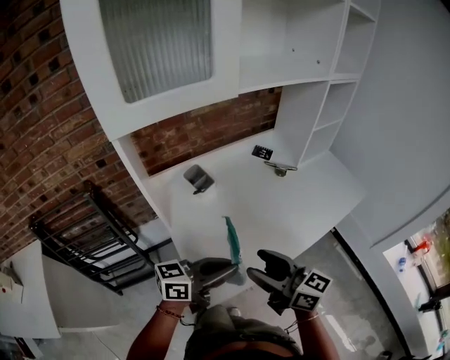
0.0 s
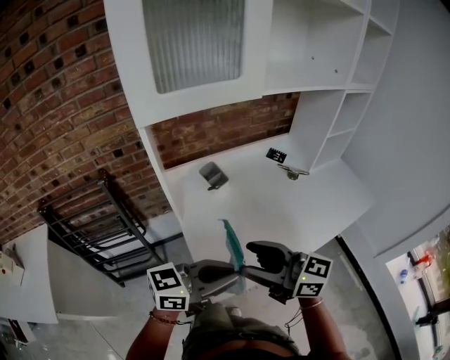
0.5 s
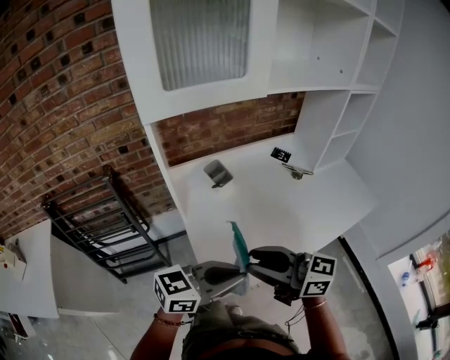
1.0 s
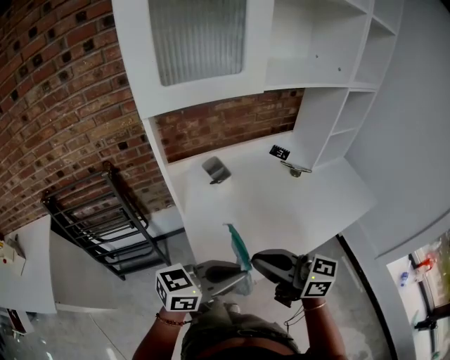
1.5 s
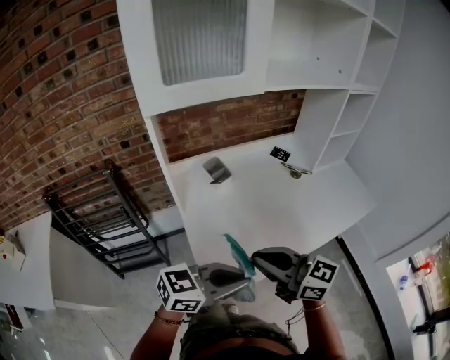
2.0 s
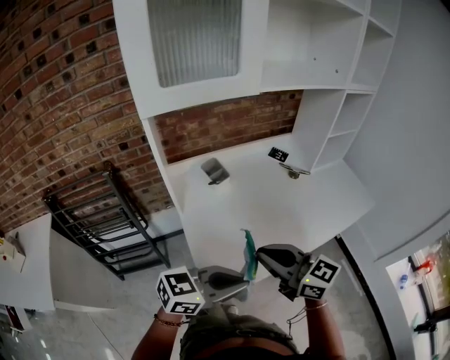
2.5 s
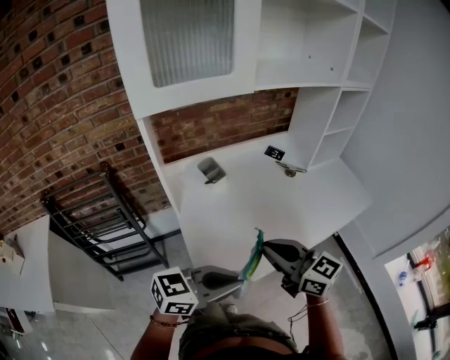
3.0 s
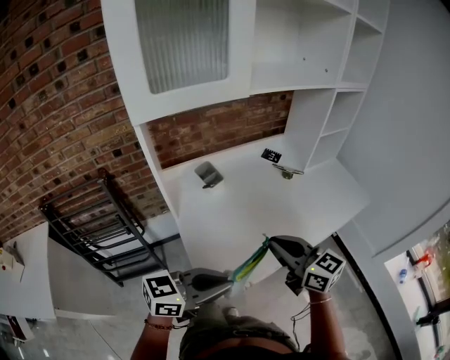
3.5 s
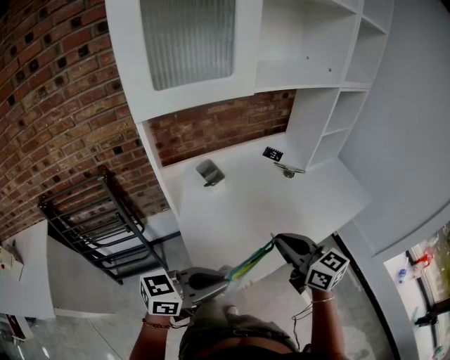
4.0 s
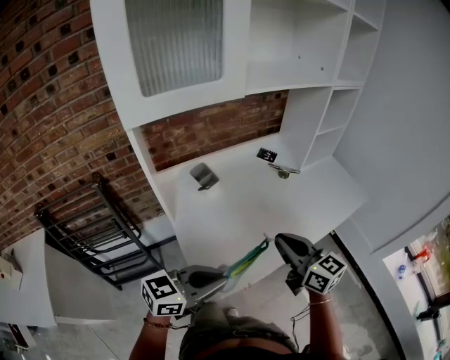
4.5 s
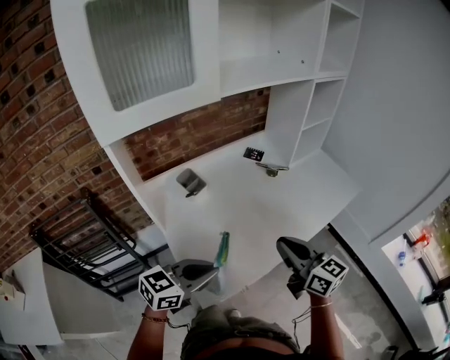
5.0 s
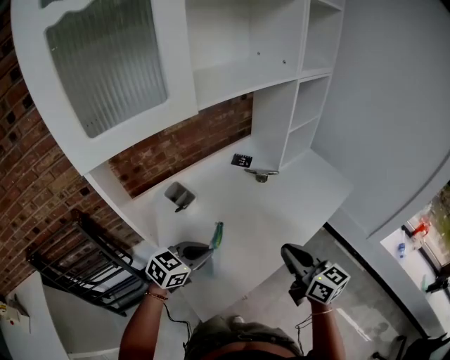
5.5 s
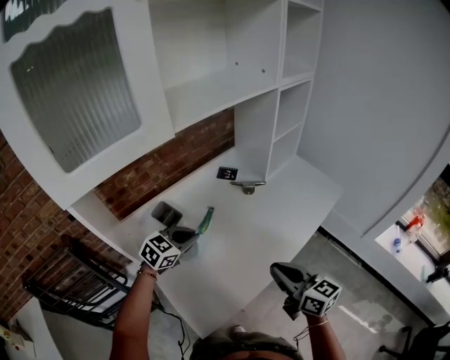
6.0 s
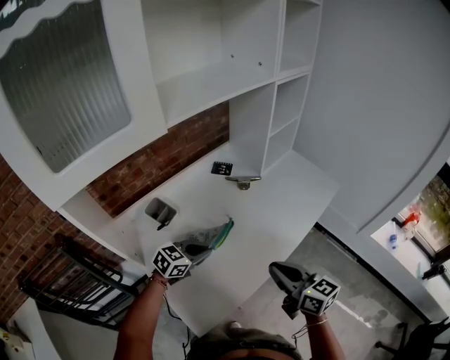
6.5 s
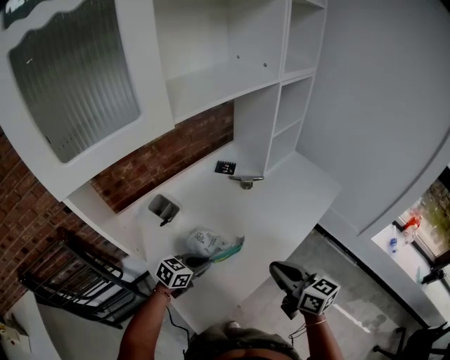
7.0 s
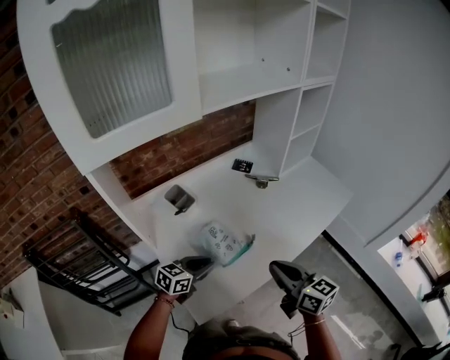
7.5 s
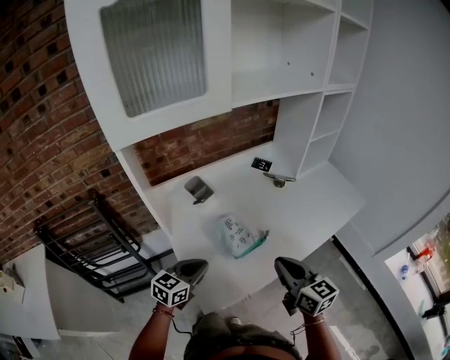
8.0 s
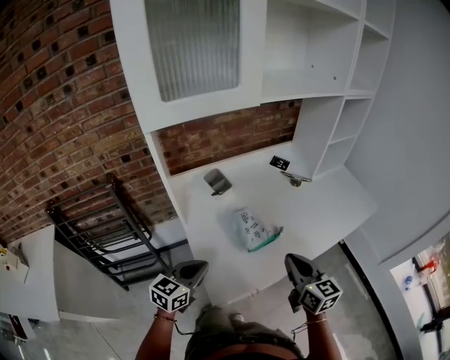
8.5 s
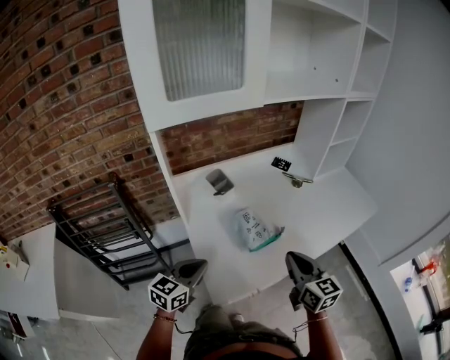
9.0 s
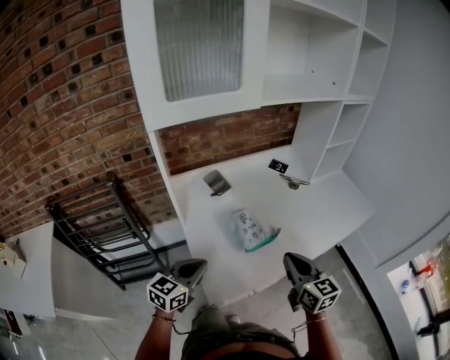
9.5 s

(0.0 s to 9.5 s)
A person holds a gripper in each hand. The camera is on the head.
0.0 s - 2.0 s: The left gripper changes place by about 10 cm. The right gripper changes place by approximately 5 cm, turns by roughly 20 degrees, and closes its fingers.
2.0 s - 4.0 s: The right gripper ends up roughly 10 cm from where it was, and turns by roughly 20 degrees.
4.0 s - 5.5 s: The right gripper goes approximately 10 cm to the right, and turns by roughly 20 degrees. The left gripper moves forward and downward, some 20 cm, and swivels about 30 degrees.
5.5 s - 7.5 s: The left gripper shifts approximately 10 cm downward, and moves roughly 10 cm forward and comes back.
7.5 s - 9.5 s: The left gripper goes some 15 cm backward, to the left and upward, and turns by some 20 degrees.

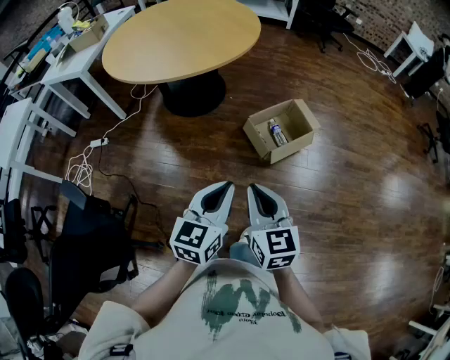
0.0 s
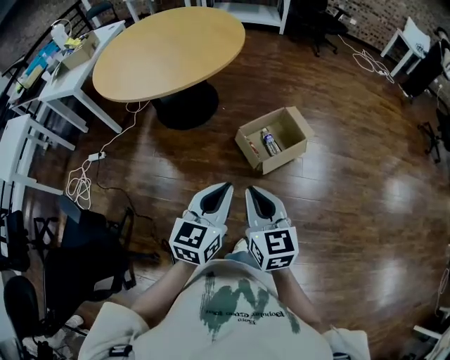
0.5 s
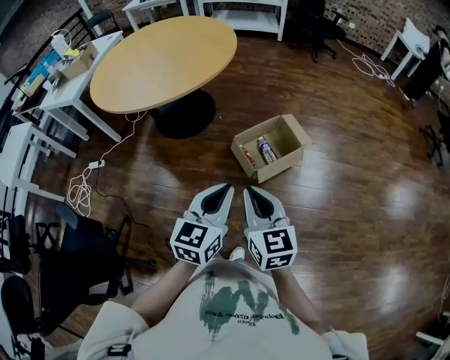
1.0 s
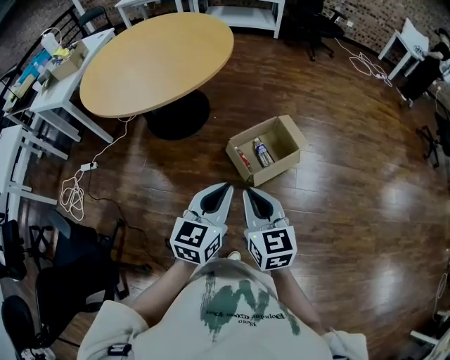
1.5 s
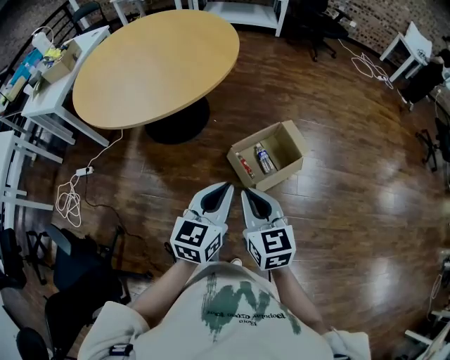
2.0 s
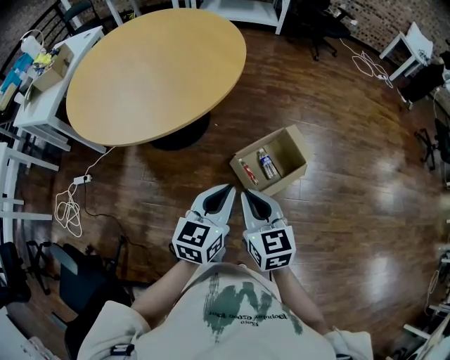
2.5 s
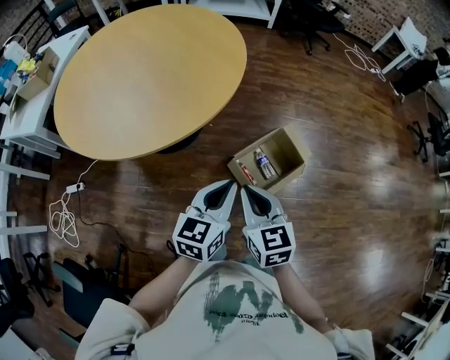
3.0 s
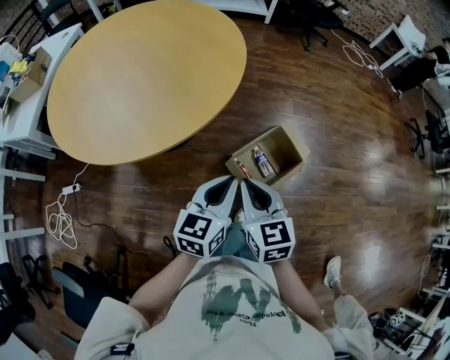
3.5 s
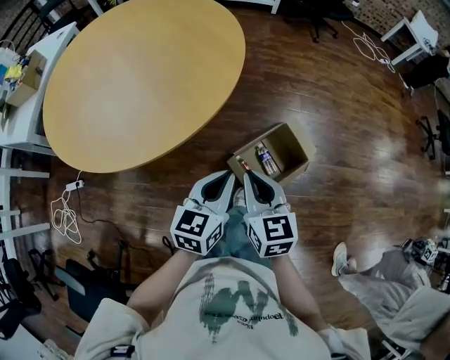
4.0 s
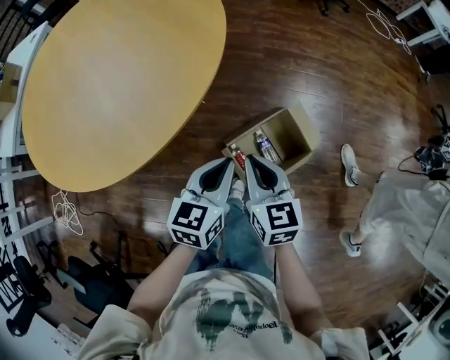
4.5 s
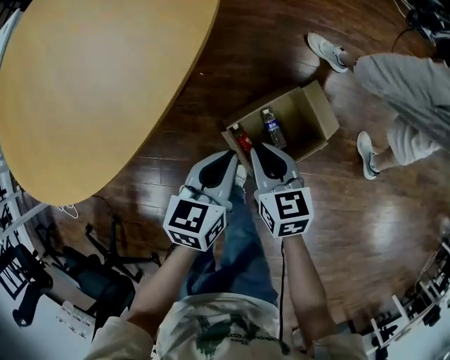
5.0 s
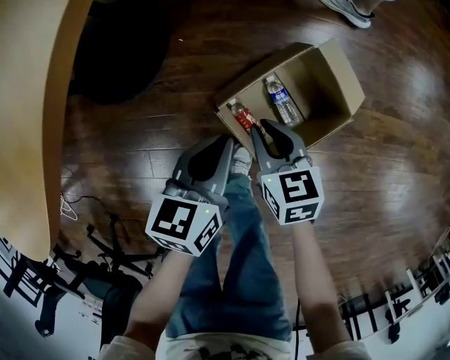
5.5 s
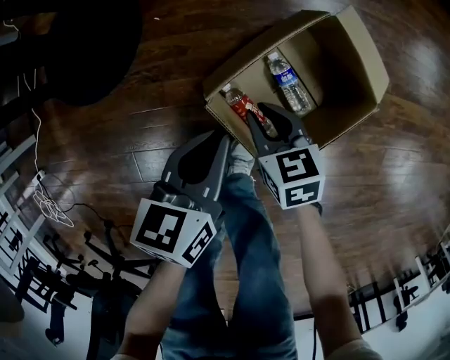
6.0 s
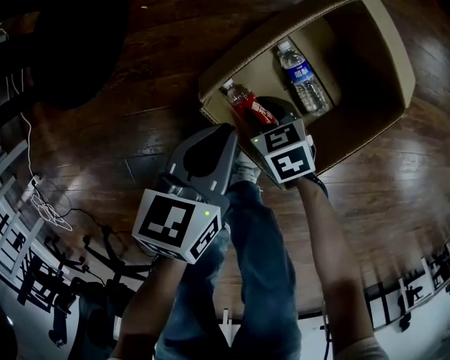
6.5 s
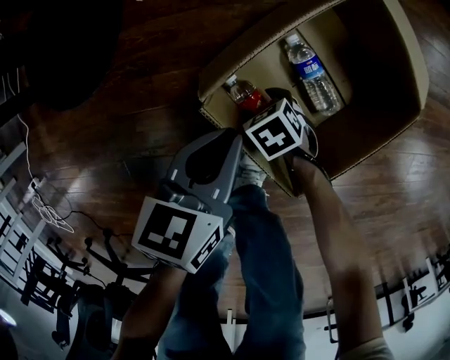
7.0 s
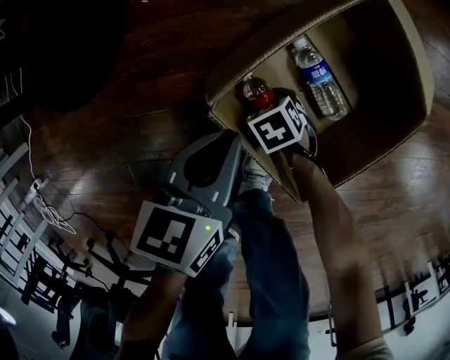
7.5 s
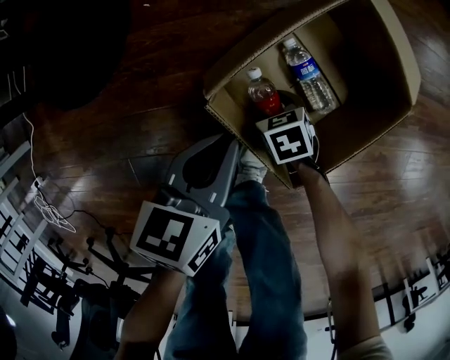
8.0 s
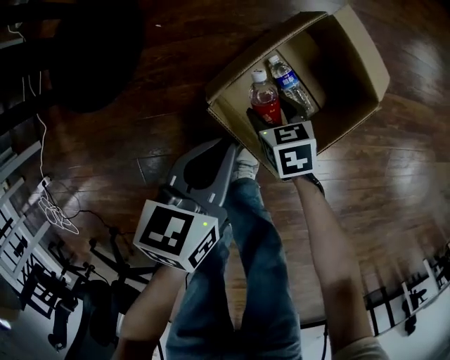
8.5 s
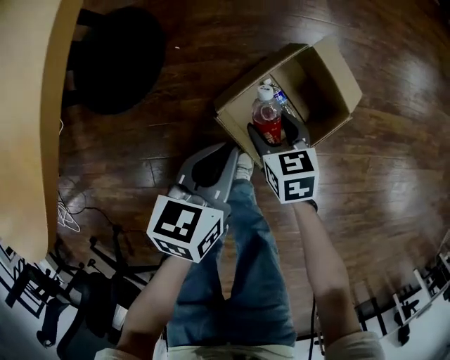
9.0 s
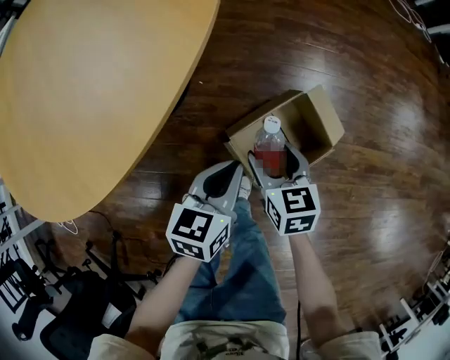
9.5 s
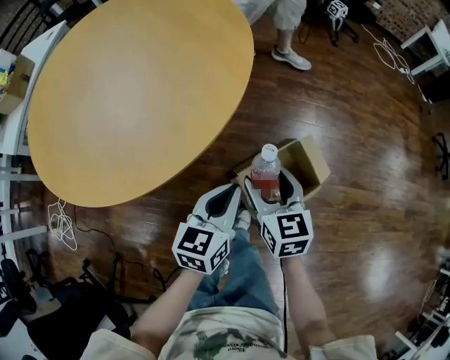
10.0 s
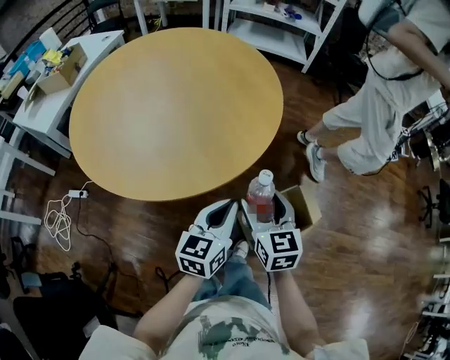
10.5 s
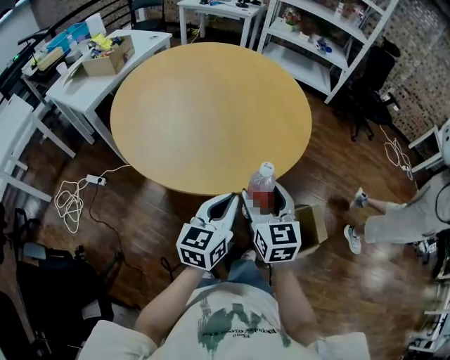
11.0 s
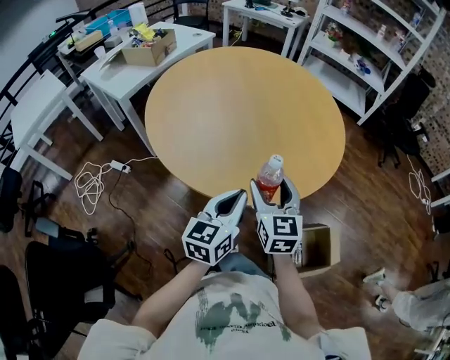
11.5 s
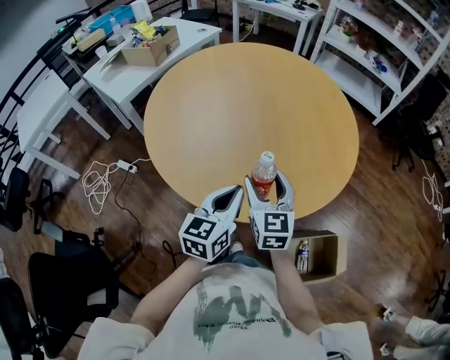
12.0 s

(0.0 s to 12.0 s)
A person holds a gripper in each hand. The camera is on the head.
0.0 s - 2.0 s: The right gripper is displaced forward by some 20 cm; the left gripper shifts about 25 cm forward and to the right.
2.0 s - 4.0 s: Both grippers travel together forward, some 25 cm.
4.0 s - 6.0 s: Both grippers travel together downward, about 50 cm. The right gripper swivels about 30 degrees. The left gripper rotates some 20 degrees.
6.0 s - 8.0 s: The left gripper goes roughly 10 cm downward, while the right gripper shifts some 20 cm downward, changes its angle by about 20 degrees, and opens.
8.0 s - 10.0 s: The two grippers go about 60 cm upward. The right gripper angles its fingers upward, by approximately 40 degrees. The left gripper turns by some 30 degrees.
10.0 s - 12.0 s: The grippers both shift to the left and upward by about 35 cm. The right gripper turns by approximately 30 degrees. Meanwhile the left gripper rotates some 30 degrees.

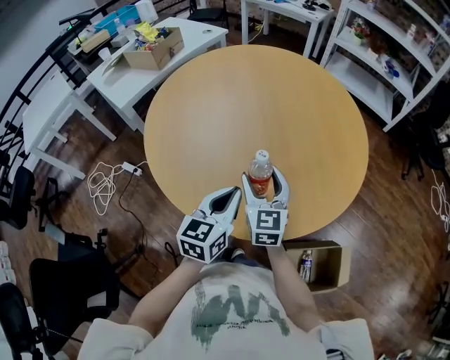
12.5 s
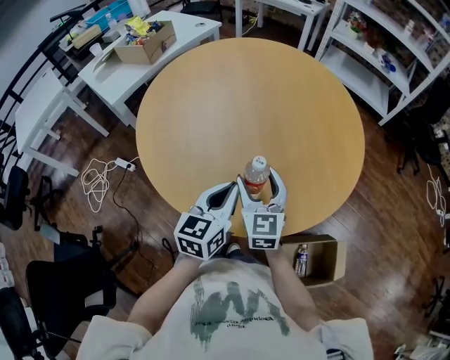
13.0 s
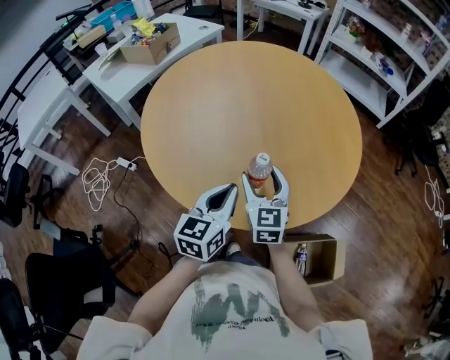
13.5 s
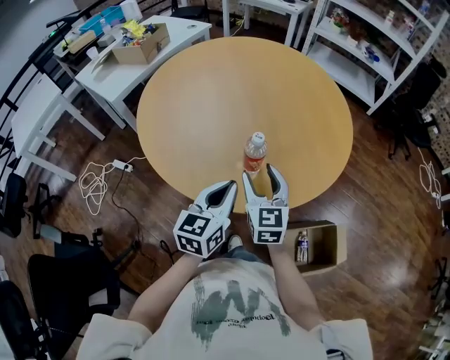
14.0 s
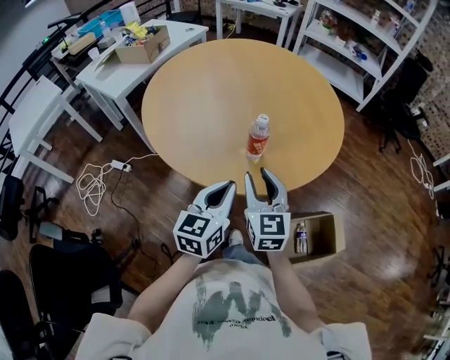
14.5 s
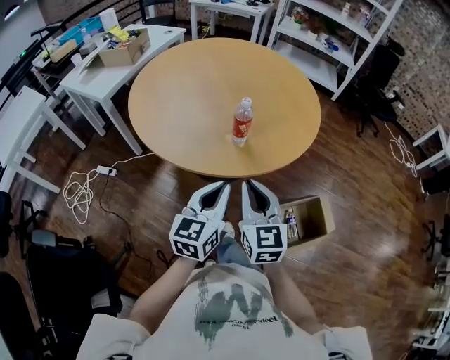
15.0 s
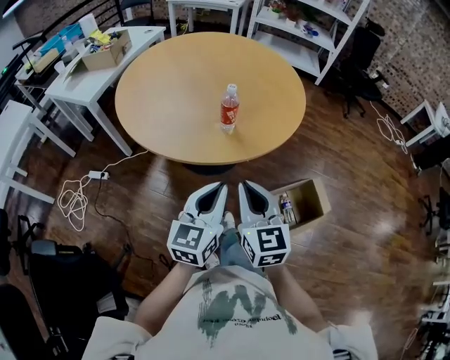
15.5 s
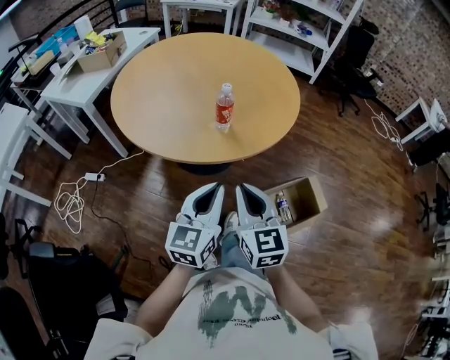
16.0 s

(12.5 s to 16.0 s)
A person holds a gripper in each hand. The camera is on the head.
12.5 s - 14.5 s: Both grippers move backward, about 15 cm. The right gripper closes.
14.5 s - 16.0 s: Both grippers travel together backward, about 15 cm. The right gripper closes its fingers.

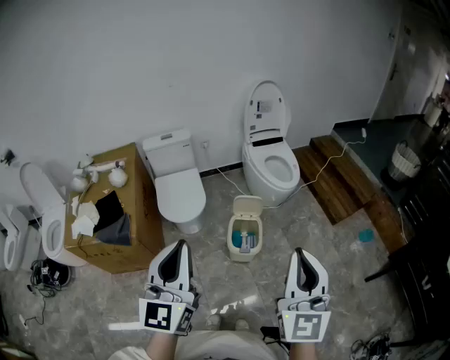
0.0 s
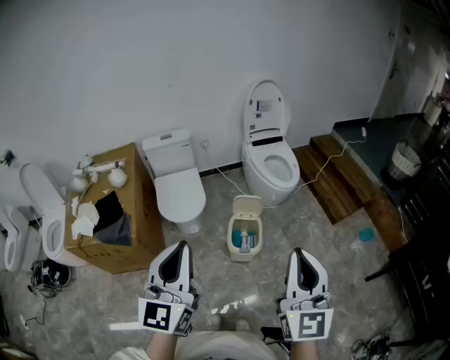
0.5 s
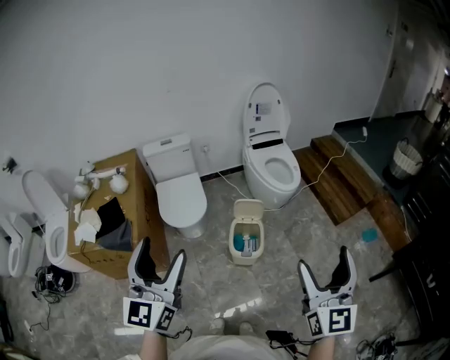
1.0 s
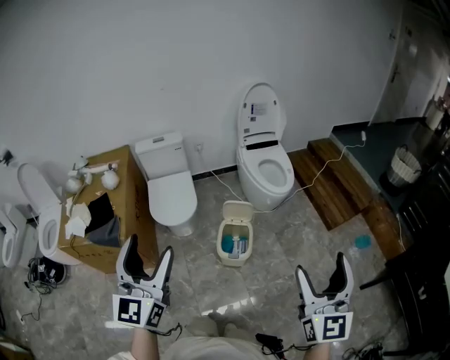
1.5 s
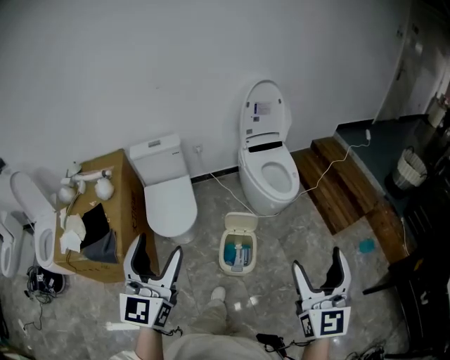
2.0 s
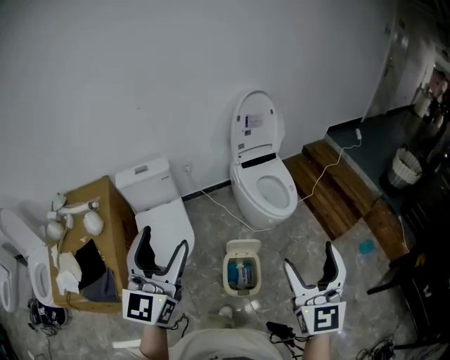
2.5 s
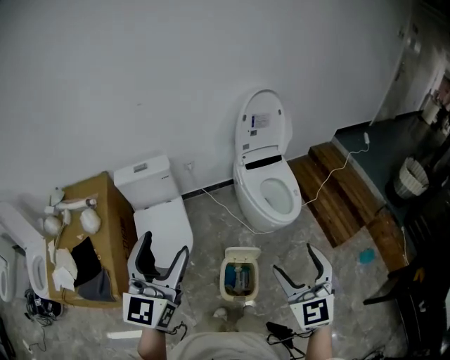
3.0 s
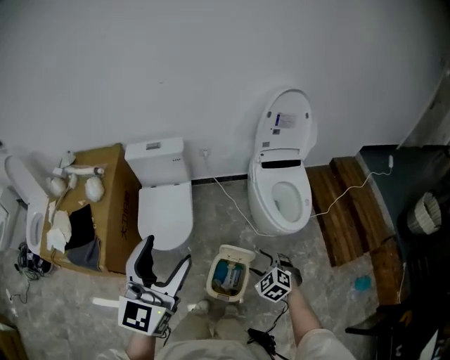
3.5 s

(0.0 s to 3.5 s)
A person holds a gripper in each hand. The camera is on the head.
0.0 s - 2.0 s: The right gripper goes about 15 cm forward and to the right, and opens its fingers. The left gripper is displaced forward by some 15 cm, and opens up.
2.0 s - 3.5 s: The right gripper heads downward and forward, covering roughly 40 cm, and points its fingers roughly 50 degrees further downward; the left gripper moves forward, roughly 20 cm.
